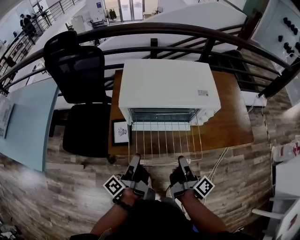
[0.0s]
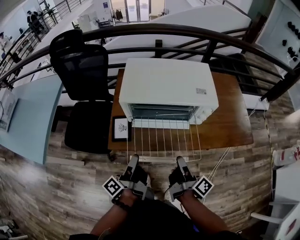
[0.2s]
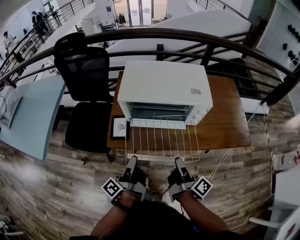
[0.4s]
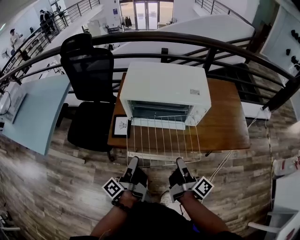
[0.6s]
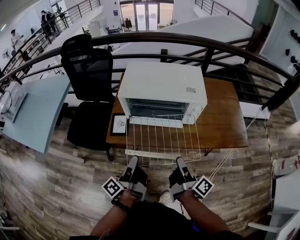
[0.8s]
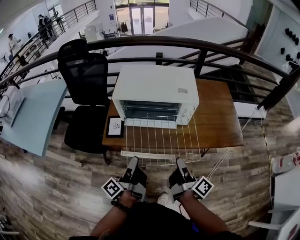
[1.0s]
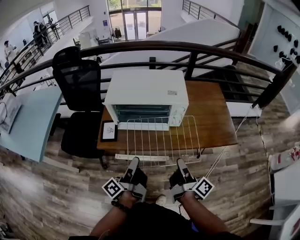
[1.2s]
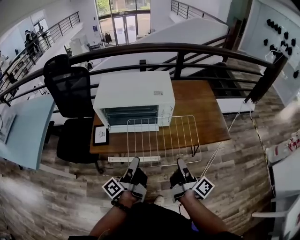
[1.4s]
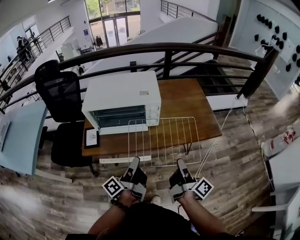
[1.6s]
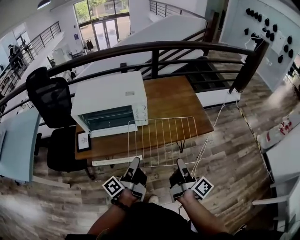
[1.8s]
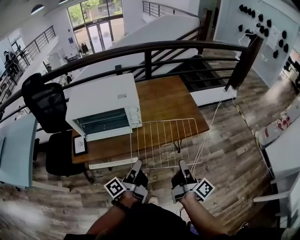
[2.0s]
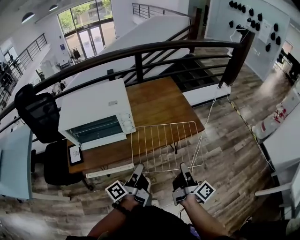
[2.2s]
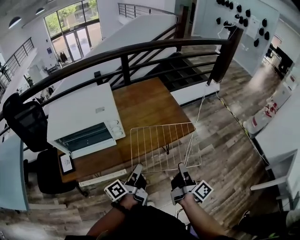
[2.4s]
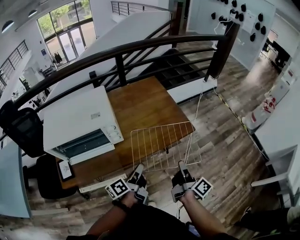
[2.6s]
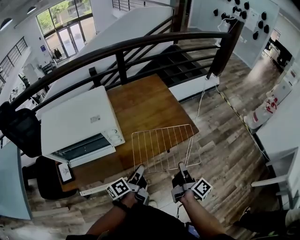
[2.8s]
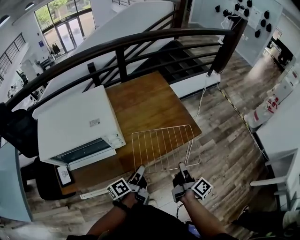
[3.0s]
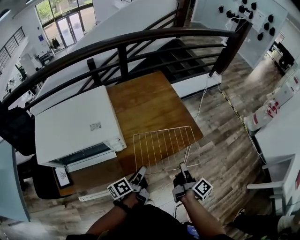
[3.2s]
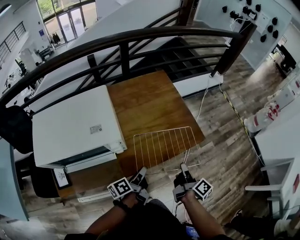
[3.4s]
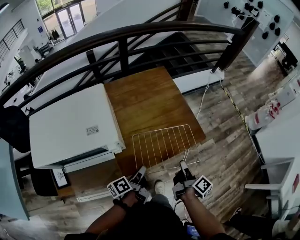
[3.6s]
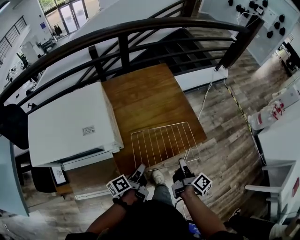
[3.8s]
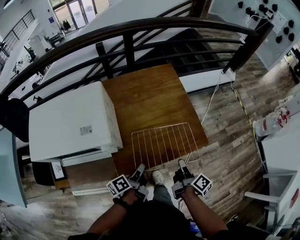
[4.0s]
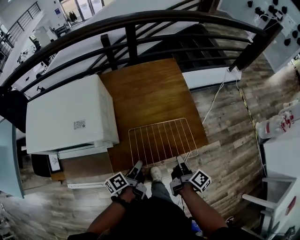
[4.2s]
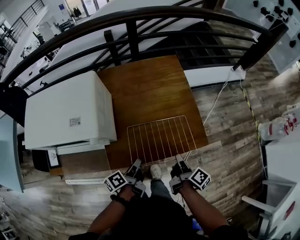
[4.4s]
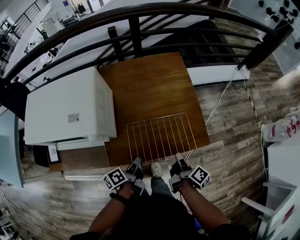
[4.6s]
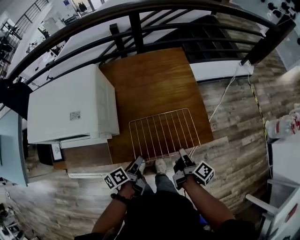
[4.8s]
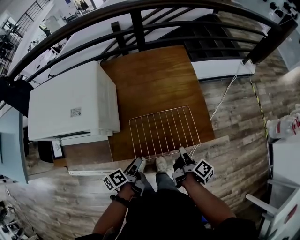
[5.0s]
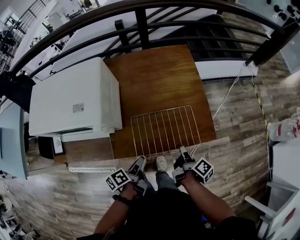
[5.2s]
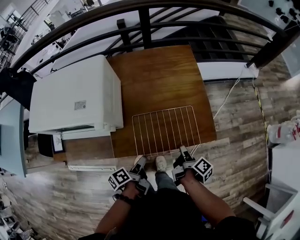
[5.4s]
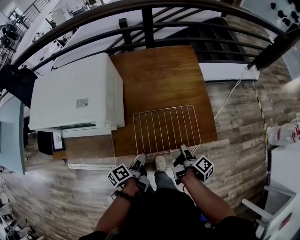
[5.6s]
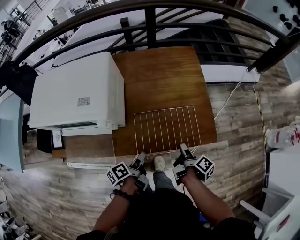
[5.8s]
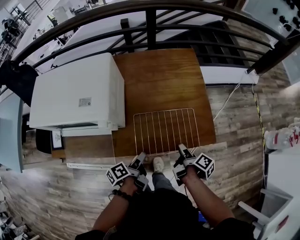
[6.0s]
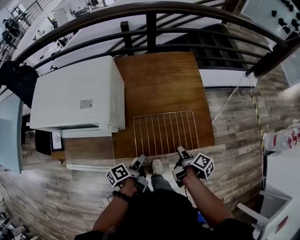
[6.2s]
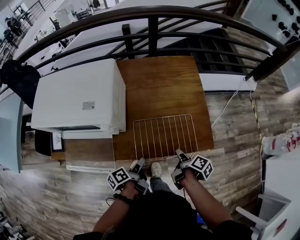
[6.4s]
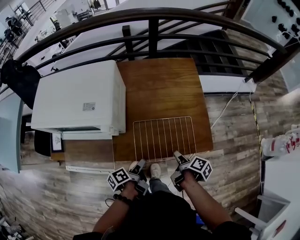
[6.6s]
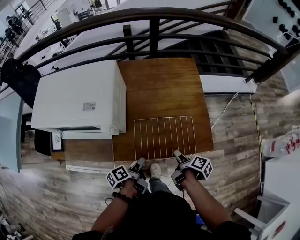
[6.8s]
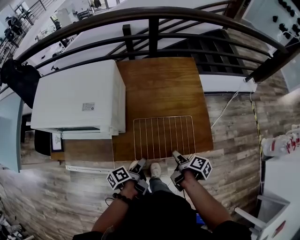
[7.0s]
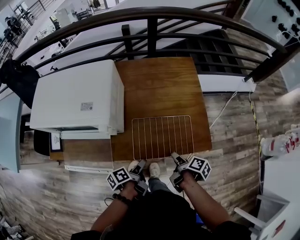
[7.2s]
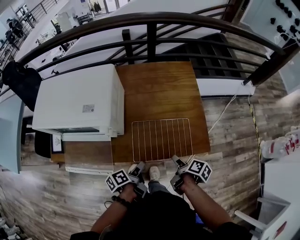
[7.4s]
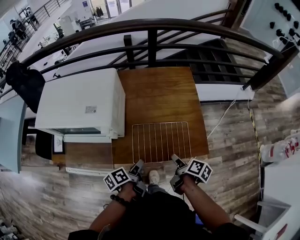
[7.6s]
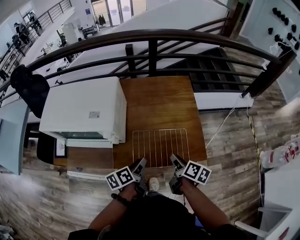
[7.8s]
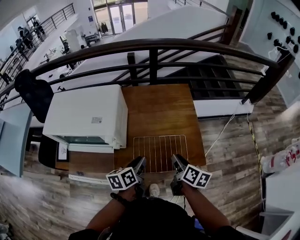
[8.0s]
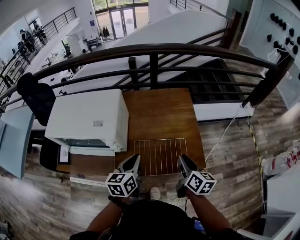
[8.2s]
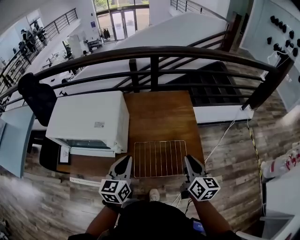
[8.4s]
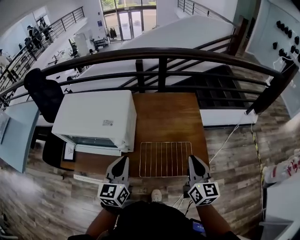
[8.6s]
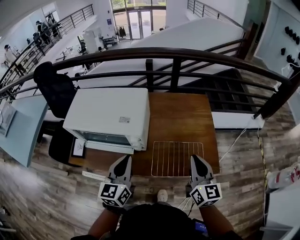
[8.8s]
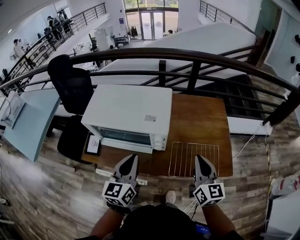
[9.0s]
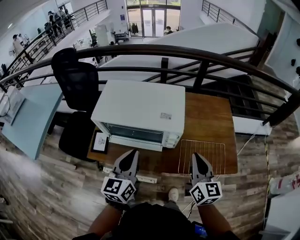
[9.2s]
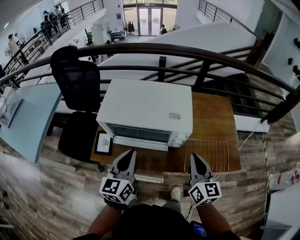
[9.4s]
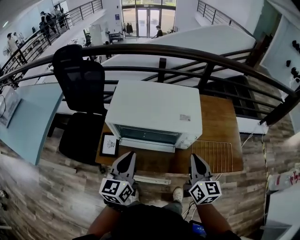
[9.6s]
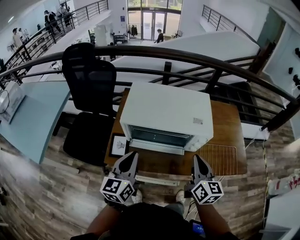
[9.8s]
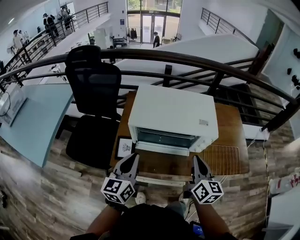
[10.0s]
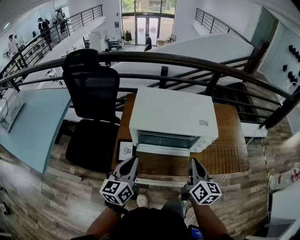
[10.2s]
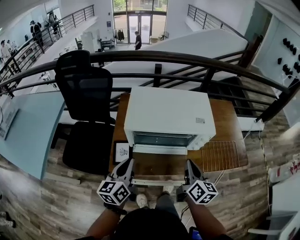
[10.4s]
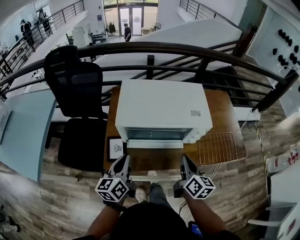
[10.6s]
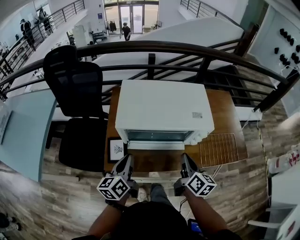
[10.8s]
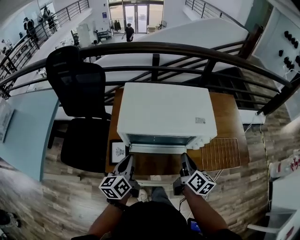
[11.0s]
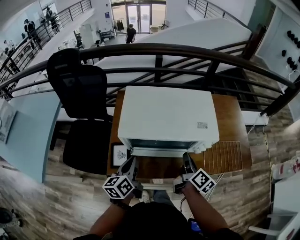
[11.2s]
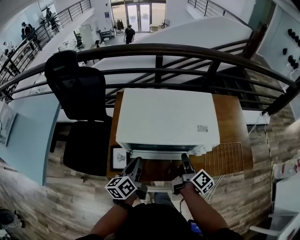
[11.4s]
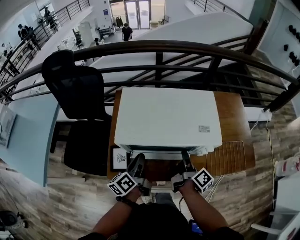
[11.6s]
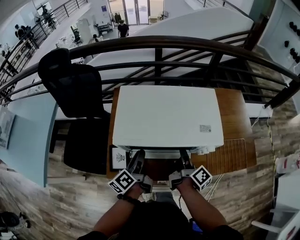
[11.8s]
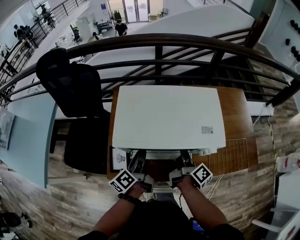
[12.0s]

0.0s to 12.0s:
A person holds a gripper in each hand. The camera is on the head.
0.0s to 1.6s: The two grippers go approximately 25 cm to the right and backward.
1.6s to 3.0s: The right gripper shifts approximately 20 cm to the right, forward and downward, and rotates roughly 20 degrees; the left gripper heads forward, to the right and downward, covering roughly 25 cm, and swivels roughly 40 degrees.
3.0s to 4.4s: The right gripper heads forward and downward, covering approximately 15 cm, and rotates about 20 degrees; the left gripper moves downward and forward, roughly 10 cm, and swivels about 20 degrees.
4.4s to 6.0s: The right gripper opens. Meanwhile the left gripper opens.
6.0s to 7.6s: The right gripper swivels about 20 degrees.
7.6s to 9.0s: The two grippers go roughly 25 cm upward and to the left. The right gripper twists some 60 degrees counterclockwise, seen from behind, and closes. The left gripper rotates around the line of its fingers by about 60 degrees, clockwise from behind, and closes.
9.0s to 10.4s: Both grippers travel together to the left, roughly 25 cm. The right gripper swivels approximately 20 degrees.
10.4s to 12.0s: The two grippers go approximately 15 cm forward and downward. The right gripper rolls clockwise, seen from behind, by about 50 degrees, and opens; the left gripper swivels approximately 40 degrees, and opens up.

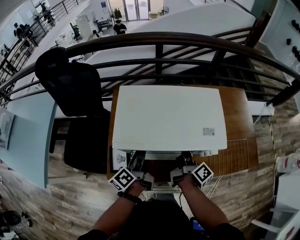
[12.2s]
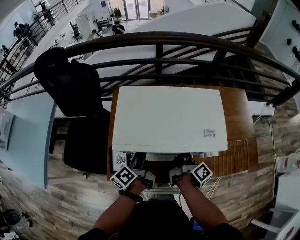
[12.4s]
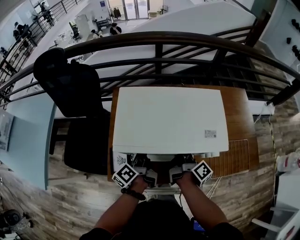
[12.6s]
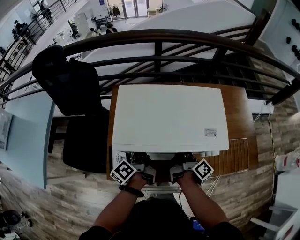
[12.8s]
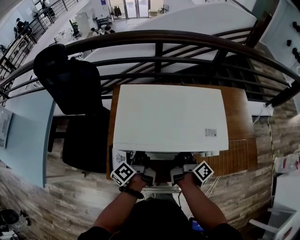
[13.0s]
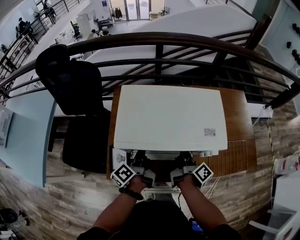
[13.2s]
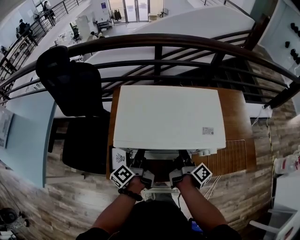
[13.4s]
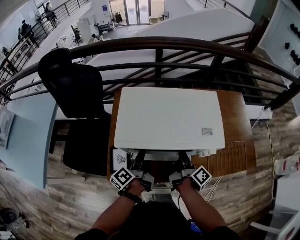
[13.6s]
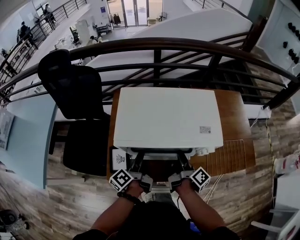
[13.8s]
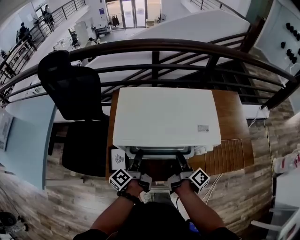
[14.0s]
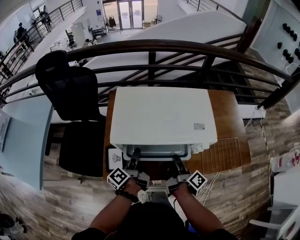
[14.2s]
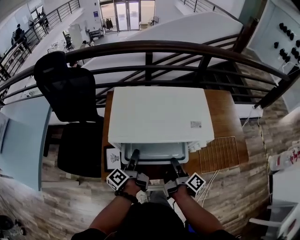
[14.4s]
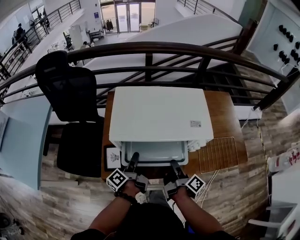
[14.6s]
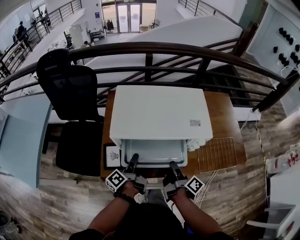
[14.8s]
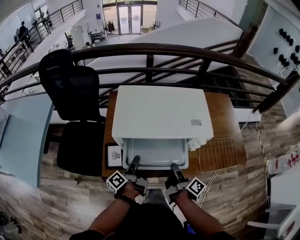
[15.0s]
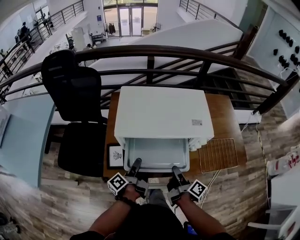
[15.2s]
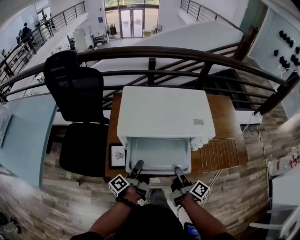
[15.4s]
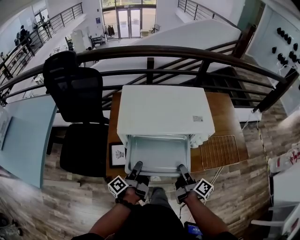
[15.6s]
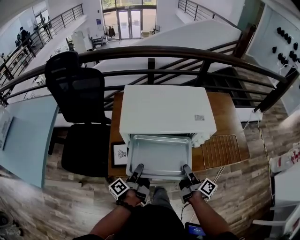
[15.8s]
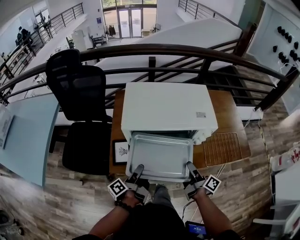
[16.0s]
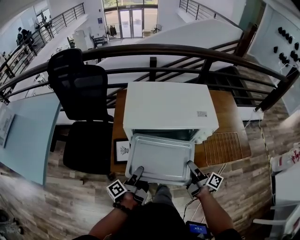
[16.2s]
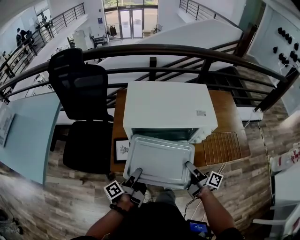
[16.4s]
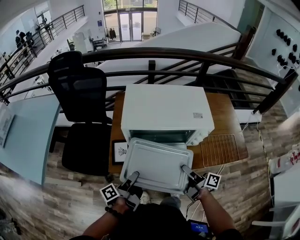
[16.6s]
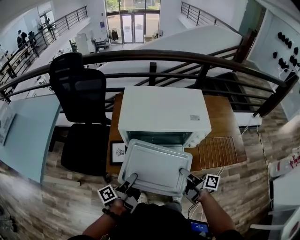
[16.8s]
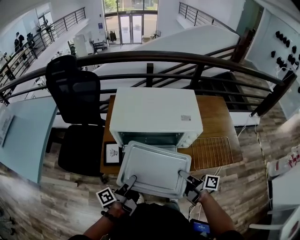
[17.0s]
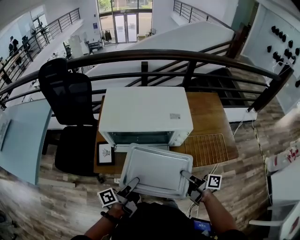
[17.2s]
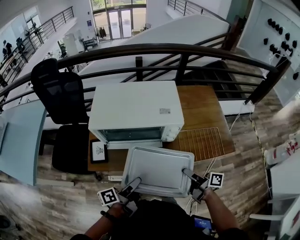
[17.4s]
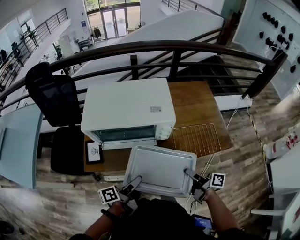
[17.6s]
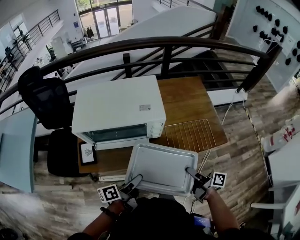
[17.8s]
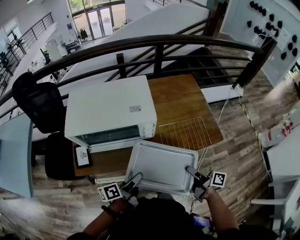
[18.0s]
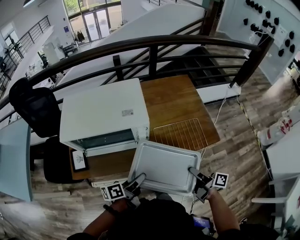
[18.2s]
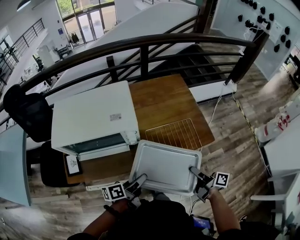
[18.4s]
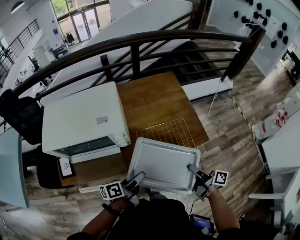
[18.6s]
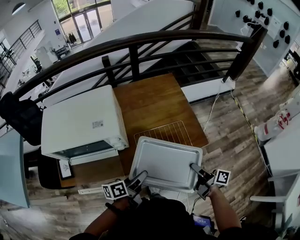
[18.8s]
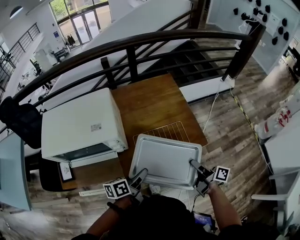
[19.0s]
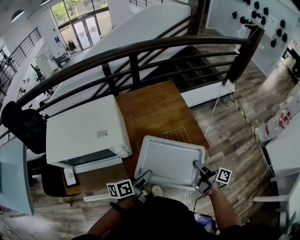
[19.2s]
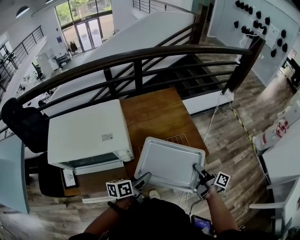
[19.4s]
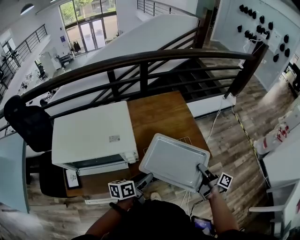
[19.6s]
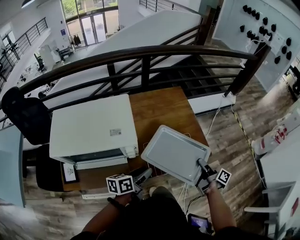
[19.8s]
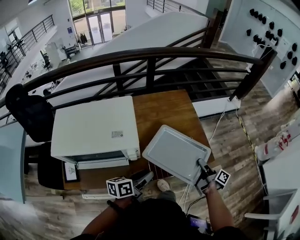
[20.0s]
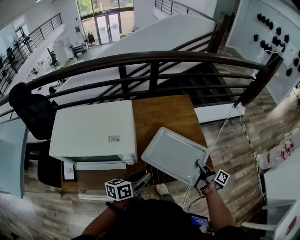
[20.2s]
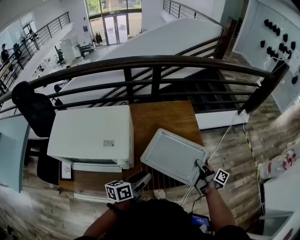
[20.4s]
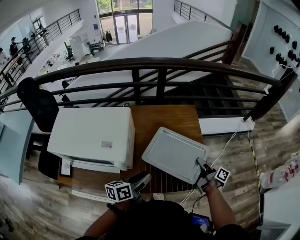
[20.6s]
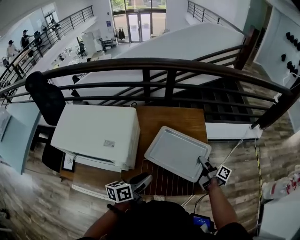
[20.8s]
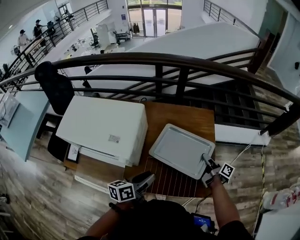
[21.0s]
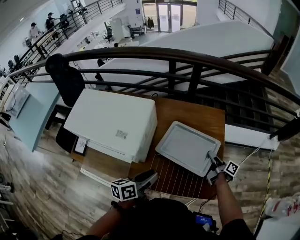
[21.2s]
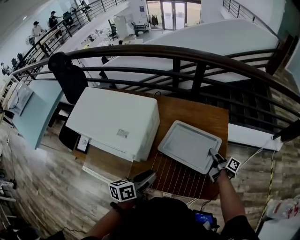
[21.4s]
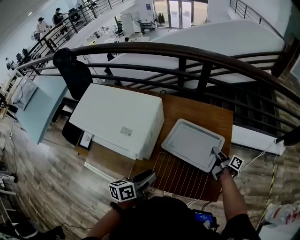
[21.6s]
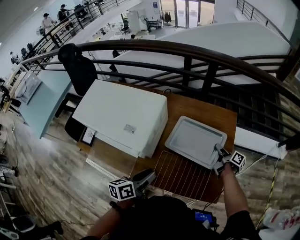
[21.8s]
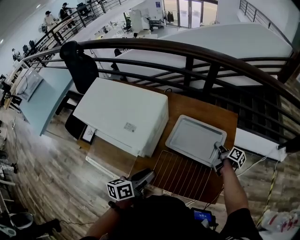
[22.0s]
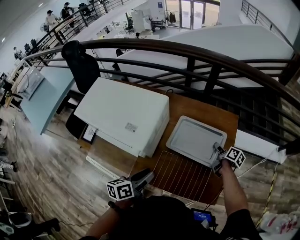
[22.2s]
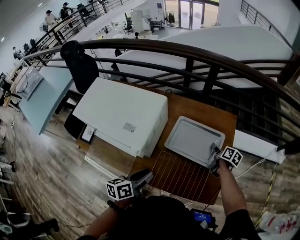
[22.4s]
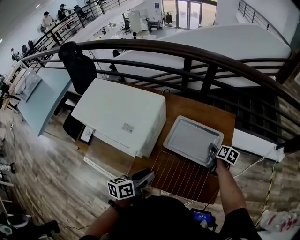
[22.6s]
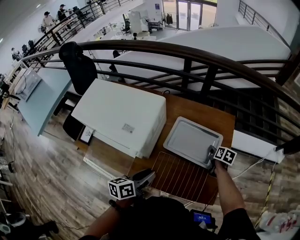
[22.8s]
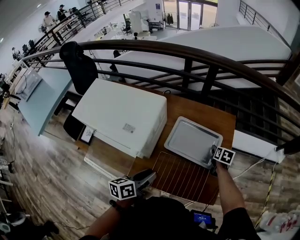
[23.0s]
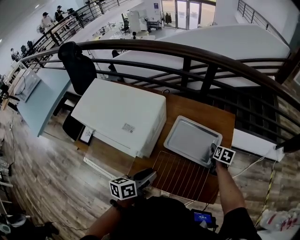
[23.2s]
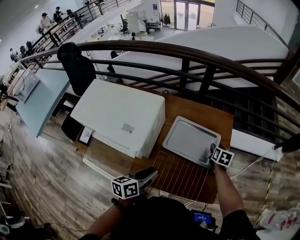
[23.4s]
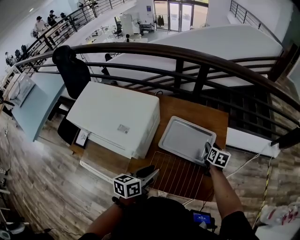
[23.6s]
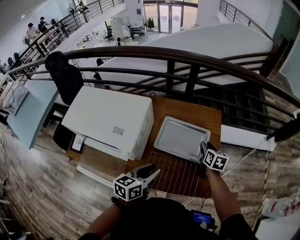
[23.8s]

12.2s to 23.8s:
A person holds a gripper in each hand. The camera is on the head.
12.2s to 13.6s: There are only small adjustments of the grippers.
13.6s to 15.0s: The right gripper moves backward, some 10 cm. The left gripper is displaced backward by some 5 cm.
15.0s to 16.6s: The right gripper ends up approximately 5 cm from where it was, and changes its angle by roughly 30 degrees, while the left gripper is displaced backward by approximately 10 cm.
16.6s to 18.0s: The grippers both shift to the right by about 25 cm. The left gripper turns by about 40 degrees.
18.0s to 19.4s: The right gripper travels to the right and forward by about 20 cm. Meanwhile the left gripper shifts roughly 20 cm forward and to the right, and swivels about 20 degrees.
19.4s to 21.0s: The left gripper is displaced forward by approximately 10 cm, and turns by roughly 20 degrees; the right gripper travels forward by roughly 25 cm.
21.0s to 22.4s: The left gripper ends up about 5 cm from where it was. The right gripper travels forward and downward by roughly 15 cm, and rotates approximately 40 degrees.
22.4s to 23.8s: The left gripper is displaced to the right by roughly 5 cm, and rotates approximately 20 degrees, while the right gripper travels upward by approximately 10 cm, and swivels roughly 30 degrees.
